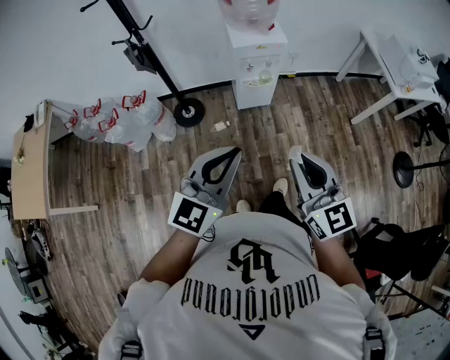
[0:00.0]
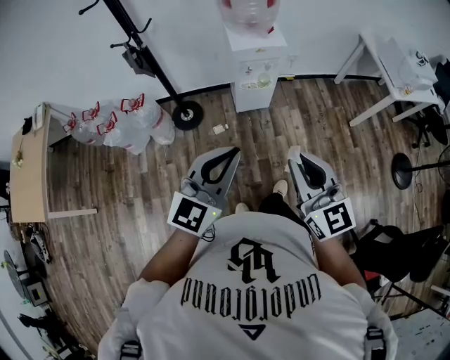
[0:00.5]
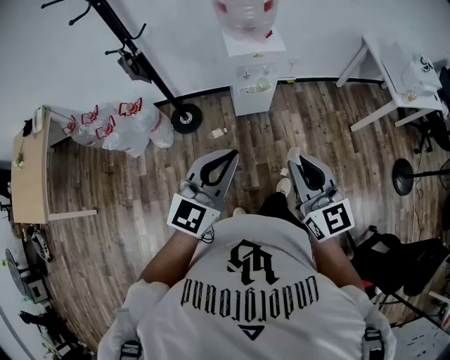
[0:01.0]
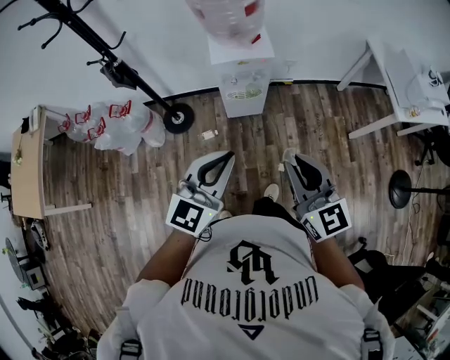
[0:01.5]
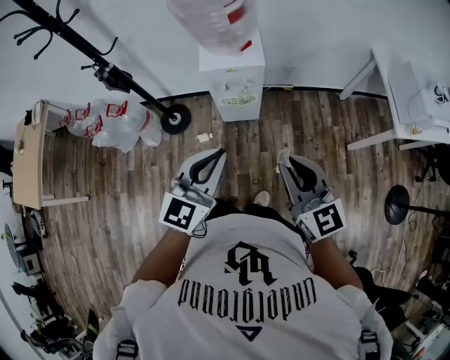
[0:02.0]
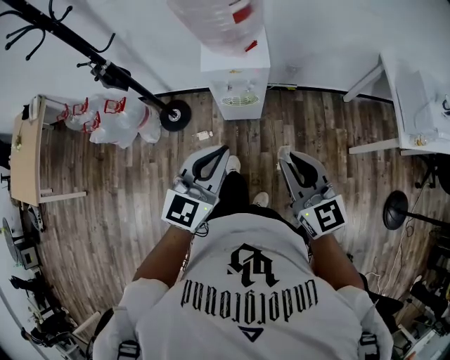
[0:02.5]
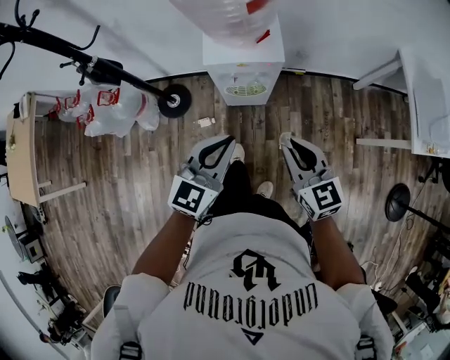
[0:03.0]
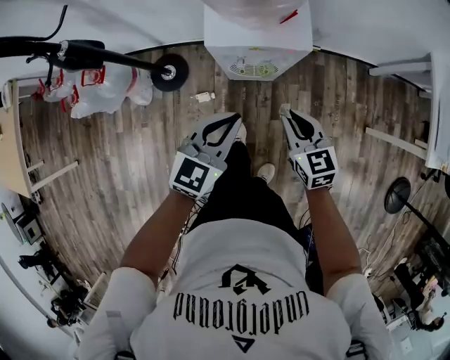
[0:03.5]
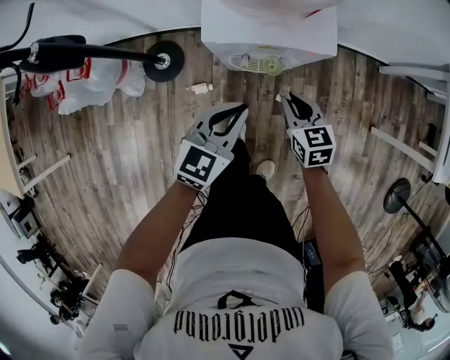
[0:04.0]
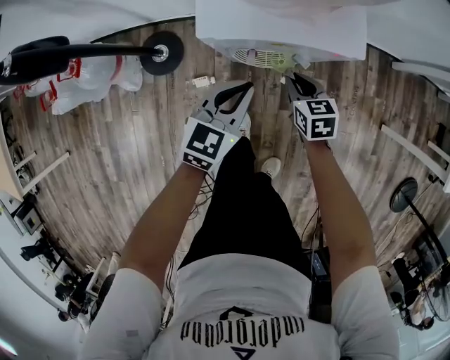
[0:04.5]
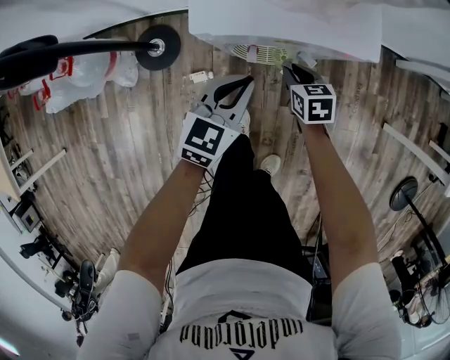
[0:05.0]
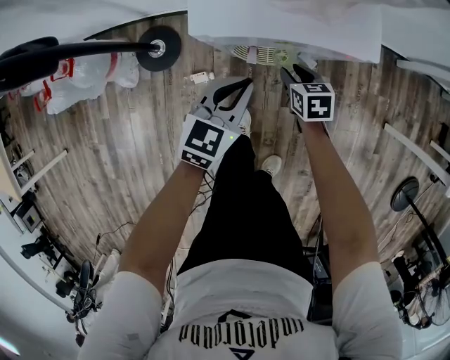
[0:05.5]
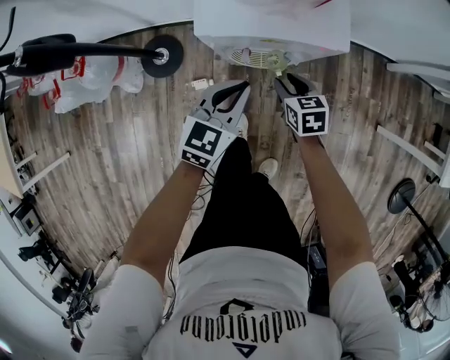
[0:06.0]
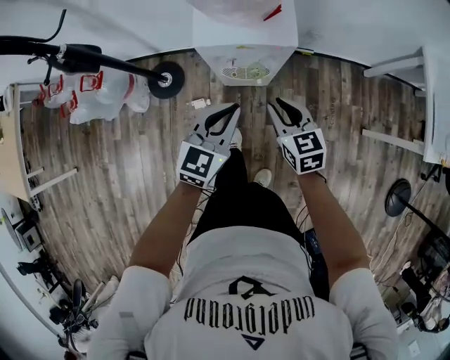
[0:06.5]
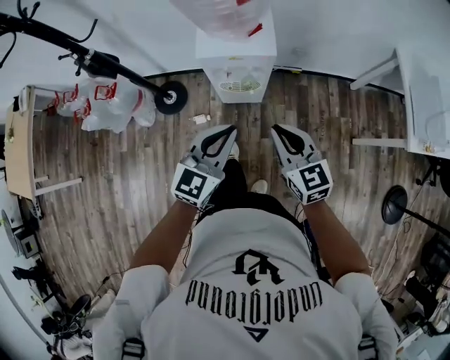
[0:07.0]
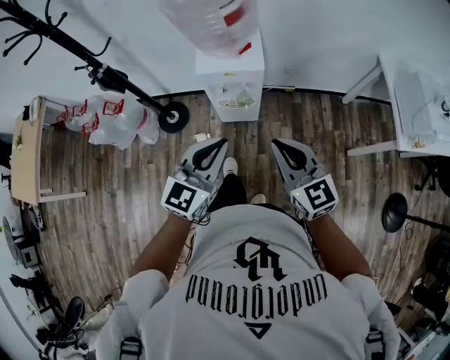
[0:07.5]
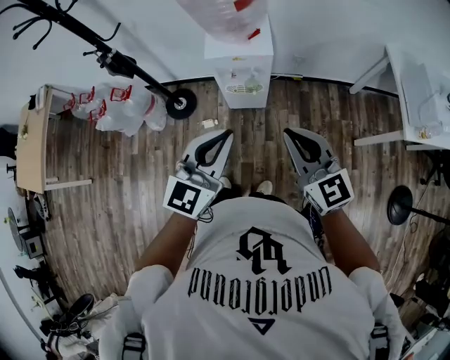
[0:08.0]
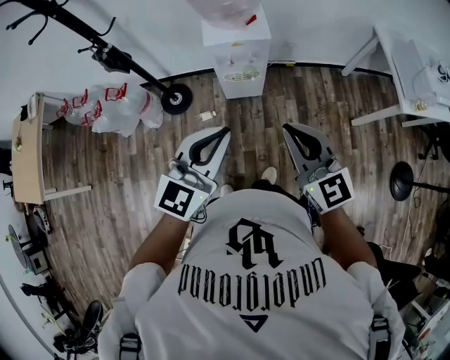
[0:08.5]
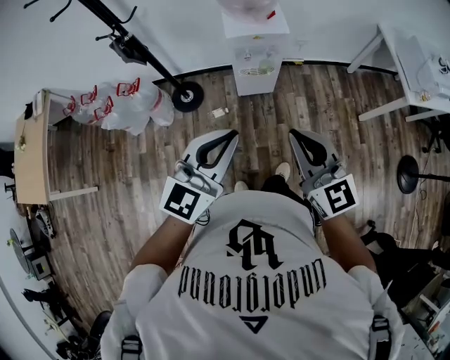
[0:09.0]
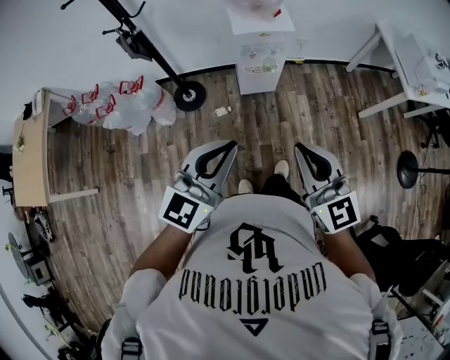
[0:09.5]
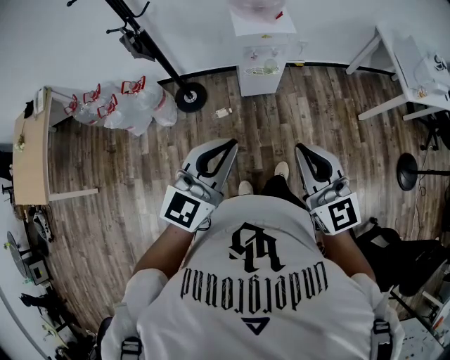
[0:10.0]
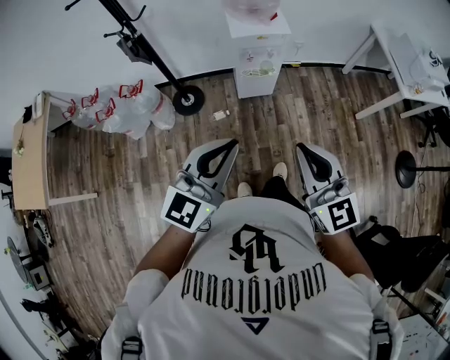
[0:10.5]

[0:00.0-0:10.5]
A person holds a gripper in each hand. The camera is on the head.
0:00.0 to 0:02.0: Both grippers move forward and to the right, some 30 cm.
0:02.0 to 0:04.0: Both grippers travel together downward and forward, roughly 50 cm. The right gripper angles its fingers downward, by roughly 30 degrees.
0:04.0 to 0:06.5: The left gripper travels upward by roughly 10 cm, while the right gripper travels upward and backward by about 15 cm.
0:06.5 to 0:08.5: The right gripper is displaced upward and backward by some 40 cm, changes its angle by roughly 30 degrees, and closes its fingers. The left gripper heads backward and upward, covering approximately 40 cm.
0:08.5 to 0:10.5: The two grippers go roughly 20 cm backward and to the left.

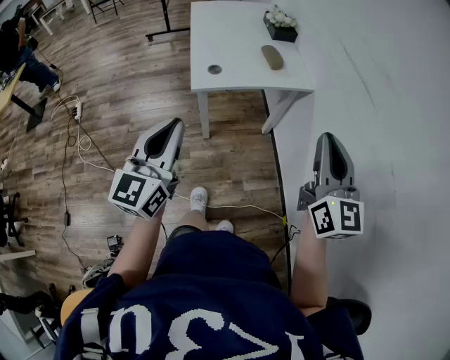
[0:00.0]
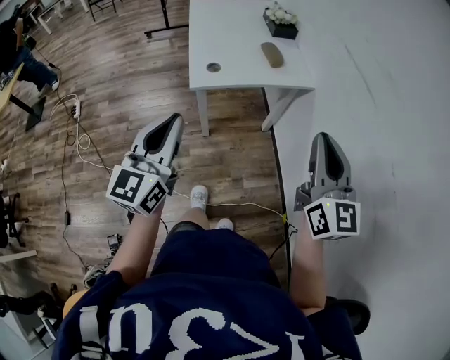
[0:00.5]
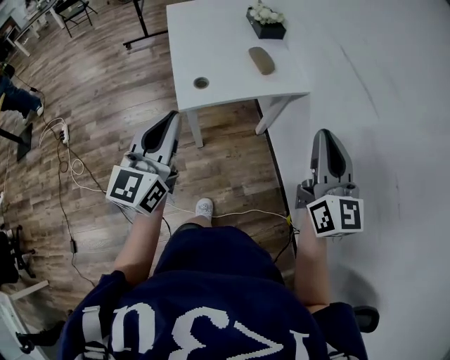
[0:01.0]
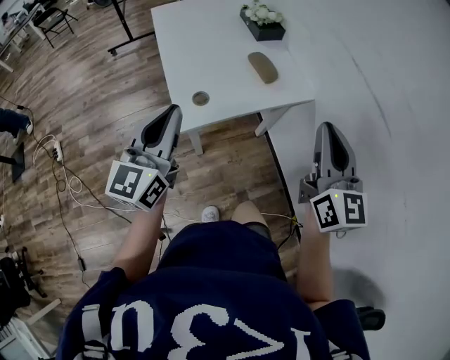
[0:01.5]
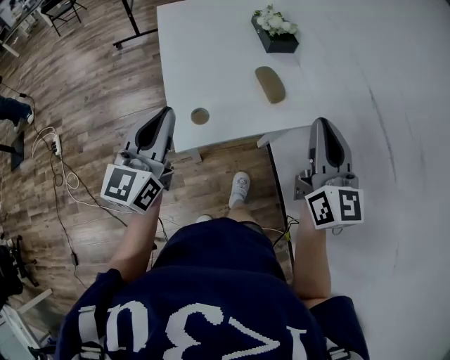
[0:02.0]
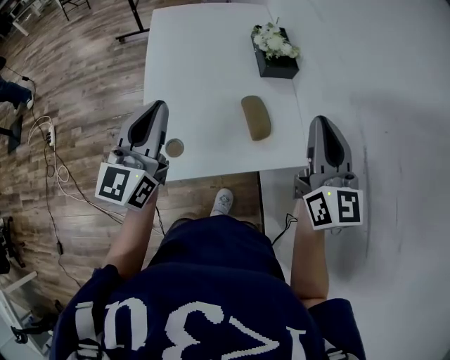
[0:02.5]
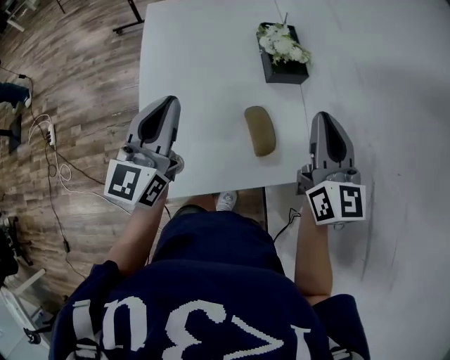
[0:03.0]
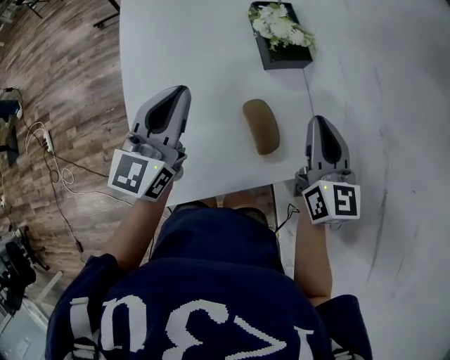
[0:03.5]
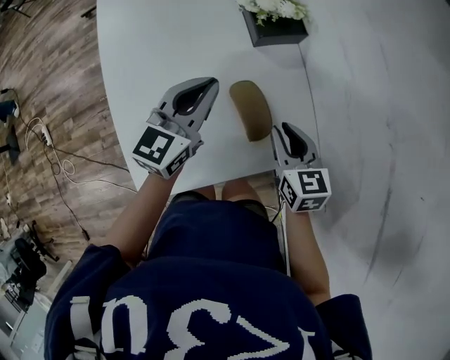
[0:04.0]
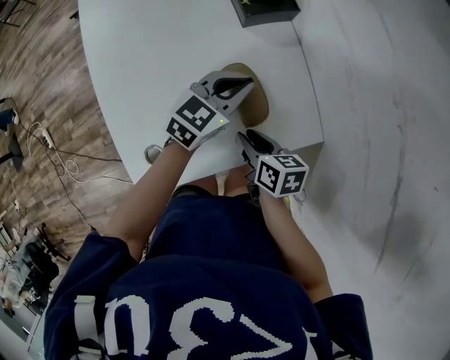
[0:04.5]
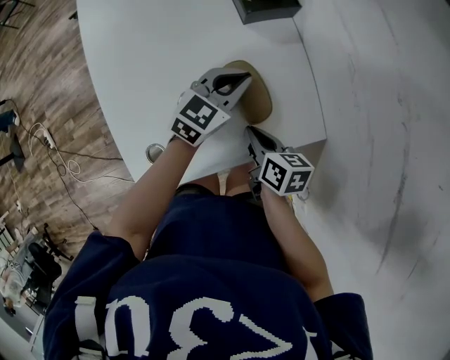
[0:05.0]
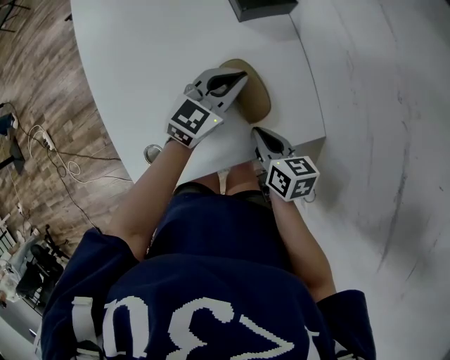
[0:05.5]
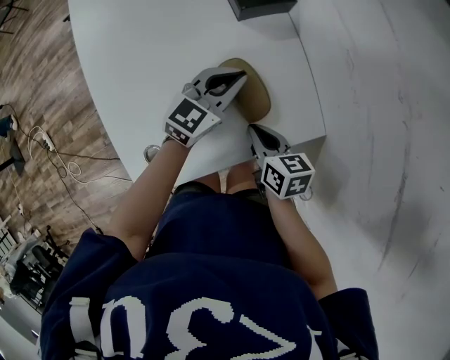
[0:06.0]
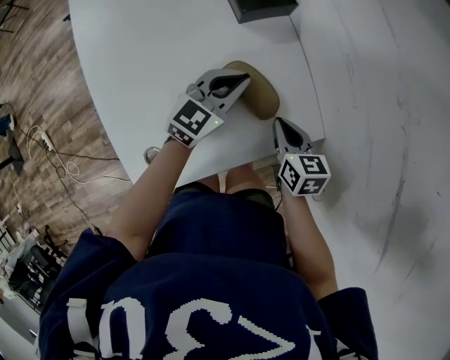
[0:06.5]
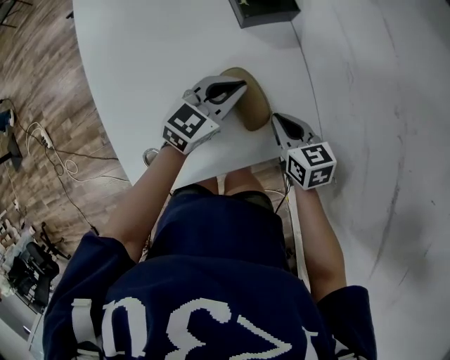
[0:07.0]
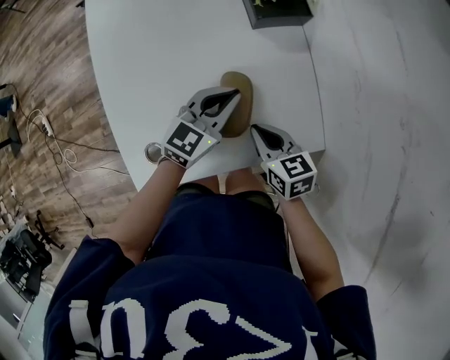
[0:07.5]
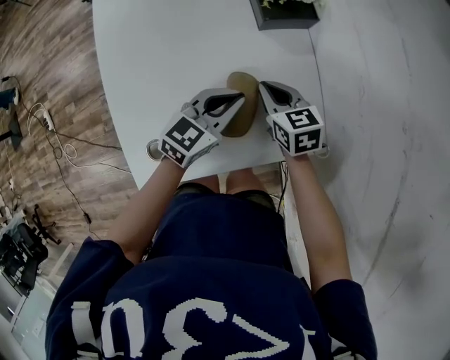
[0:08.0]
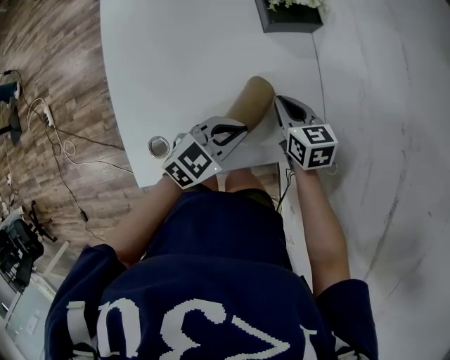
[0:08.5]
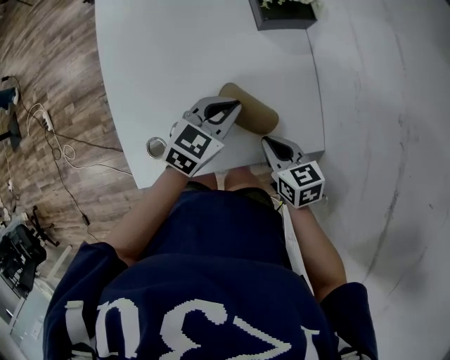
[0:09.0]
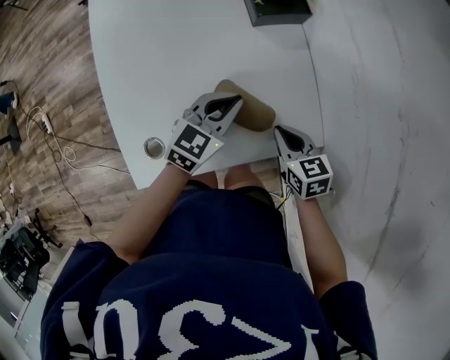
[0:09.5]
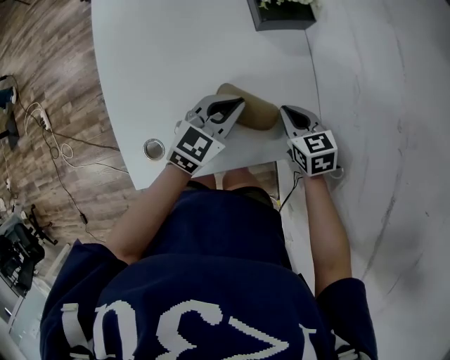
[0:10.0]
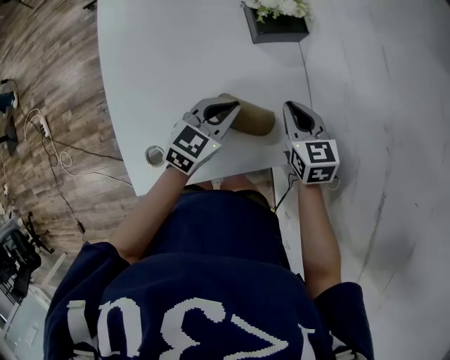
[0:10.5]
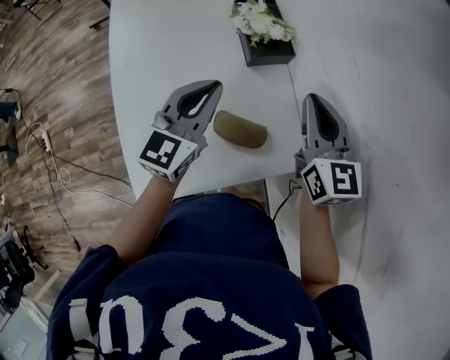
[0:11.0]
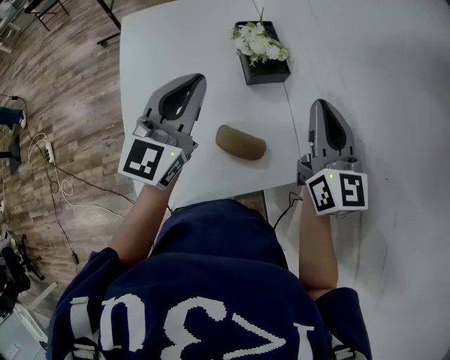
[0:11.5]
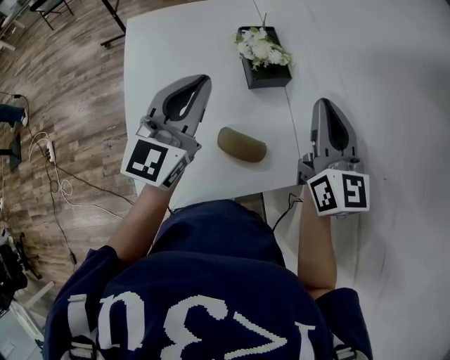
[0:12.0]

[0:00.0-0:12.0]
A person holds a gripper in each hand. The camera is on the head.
0:00.0 to 0:02.0: The two grippers go roughly 30 cm forward.
0:02.0 to 0:04.0: The right gripper shifts approximately 35 cm forward and downward, and angles its fingers downward, by about 40 degrees. Meanwhile the left gripper goes about 40 cm forward, to the right and downward, and changes its angle by roughly 20 degrees.
0:04.0 to 0:06.0: The right gripper is displaced downward and backward by about 10 cm, and swivels about 30 degrees. Meanwhile the left gripper moves downward and to the right, approximately 15 cm, and turns by approximately 20 degrees.
0:06.0 to 0:08.0: The right gripper goes roughly 15 cm forward, and changes its angle by roughly 30 degrees.
0:08.0 to 0:10.0: The right gripper moves to the right, some 10 cm, and moves roughly 15 cm backward and comes back; the left gripper travels backward and back again, approximately 10 cm each way.
0:10.0 to 0:12.0: The two grippers go some 30 cm upward. The left gripper changes its angle by about 40 degrees; the right gripper tips its fingers upward by some 50 degrees.

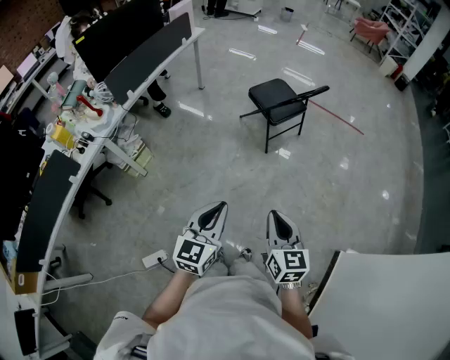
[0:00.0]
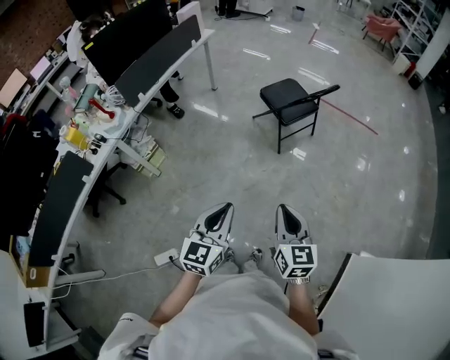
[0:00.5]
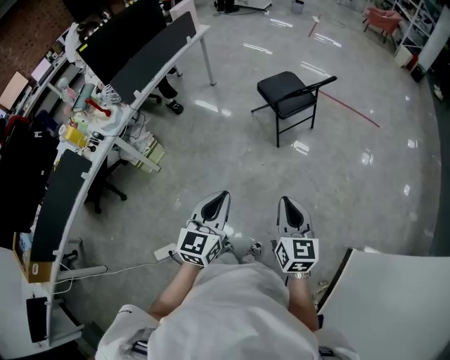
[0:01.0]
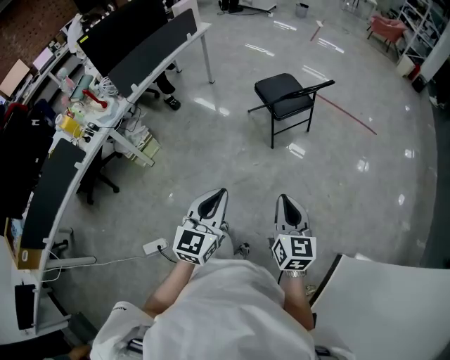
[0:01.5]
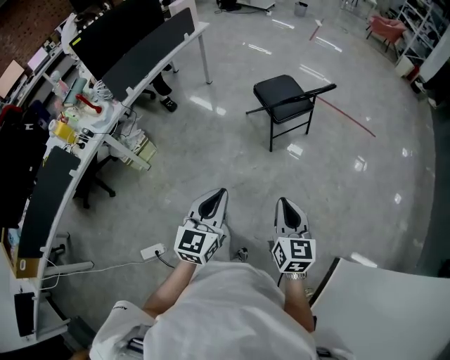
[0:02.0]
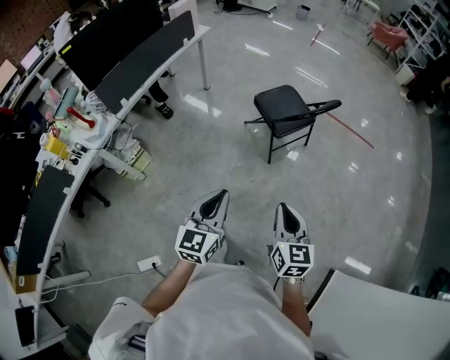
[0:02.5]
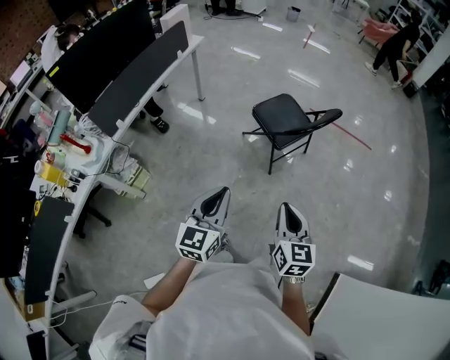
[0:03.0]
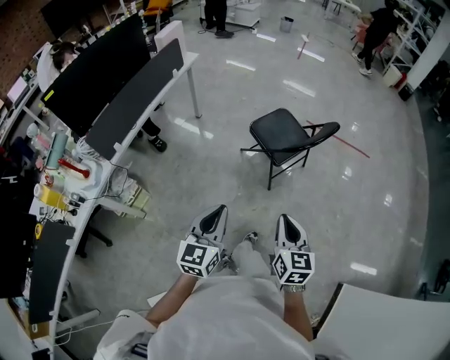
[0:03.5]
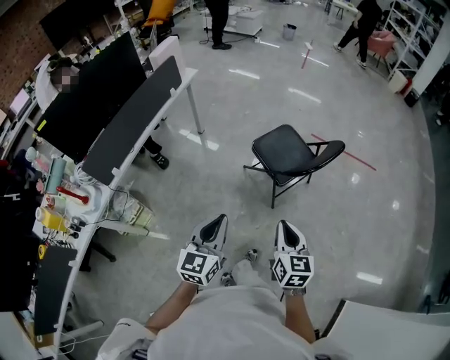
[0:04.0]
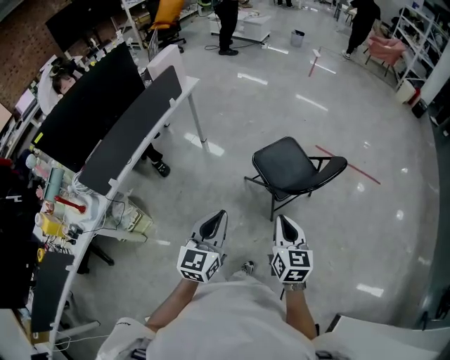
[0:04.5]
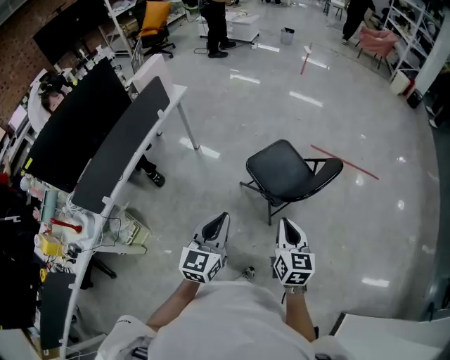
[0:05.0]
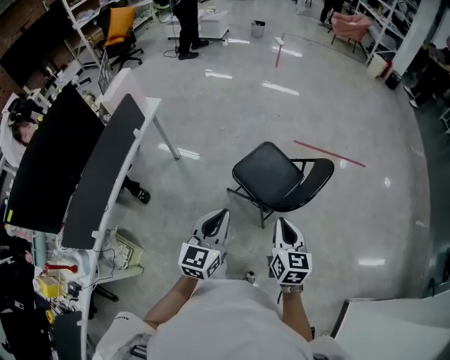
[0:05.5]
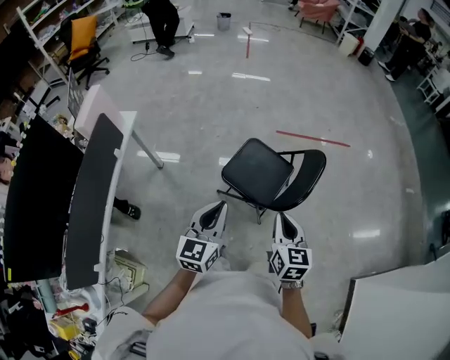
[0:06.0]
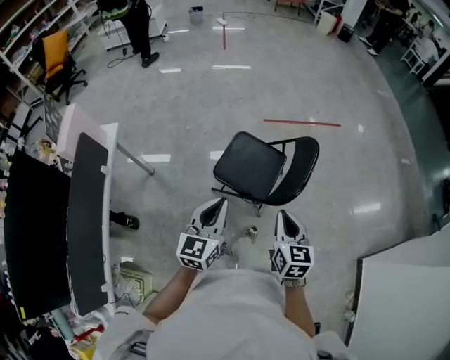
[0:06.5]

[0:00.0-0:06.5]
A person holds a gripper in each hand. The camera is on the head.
0:00.0 to 0:02.0: The left gripper is displaced forward and to the right by approximately 10 cm. The right gripper shifts about 10 cm to the right and forward.
0:02.0 to 0:04.5: Both grippers are carried forward, roughly 40 cm.
0:04.5 to 0:06.5: The right gripper shifts by some 20 cm, and turns by about 30 degrees. Meanwhile the left gripper changes place by some 30 cm, and swivels about 30 degrees.
